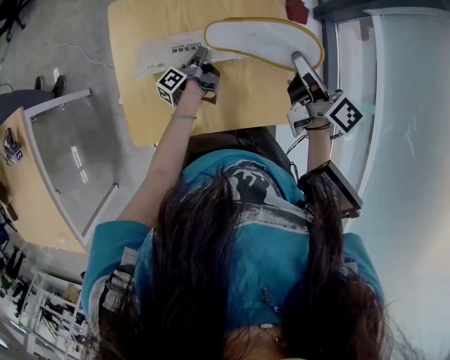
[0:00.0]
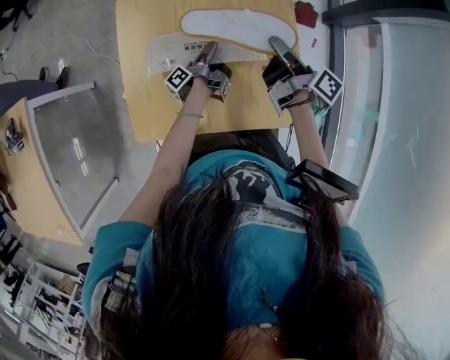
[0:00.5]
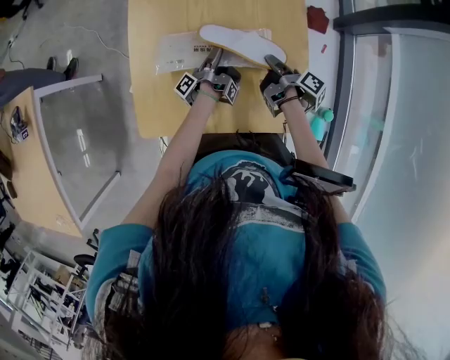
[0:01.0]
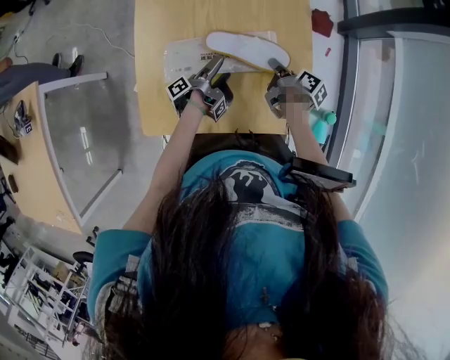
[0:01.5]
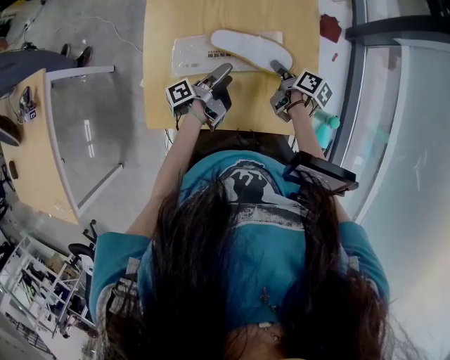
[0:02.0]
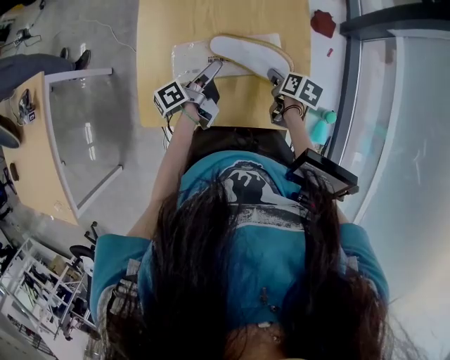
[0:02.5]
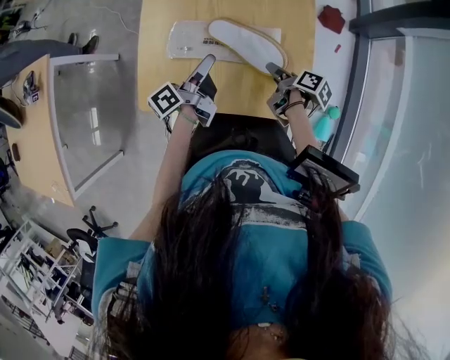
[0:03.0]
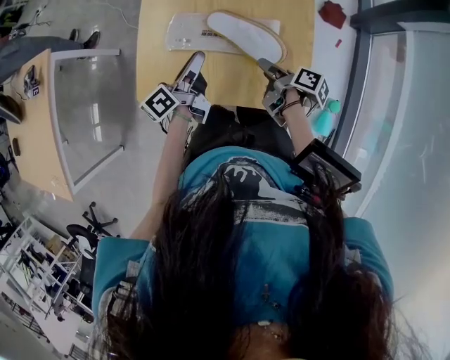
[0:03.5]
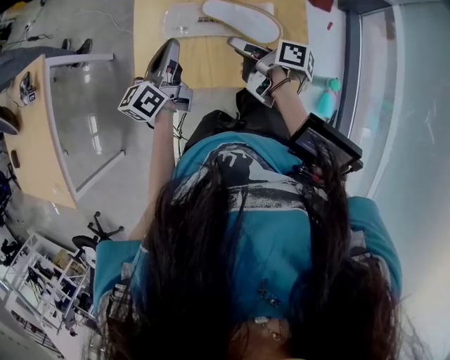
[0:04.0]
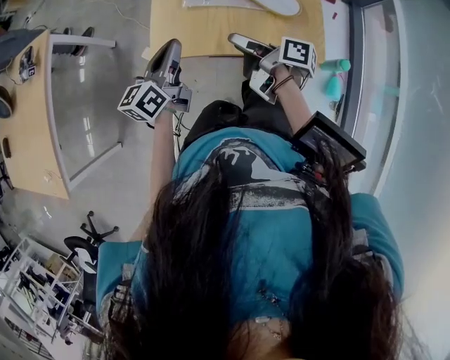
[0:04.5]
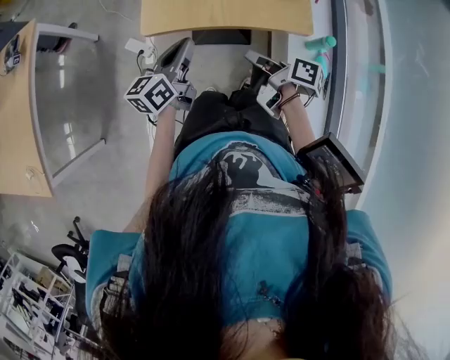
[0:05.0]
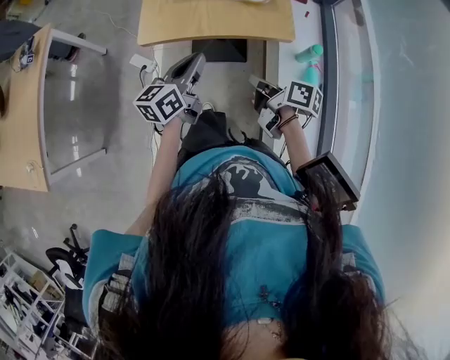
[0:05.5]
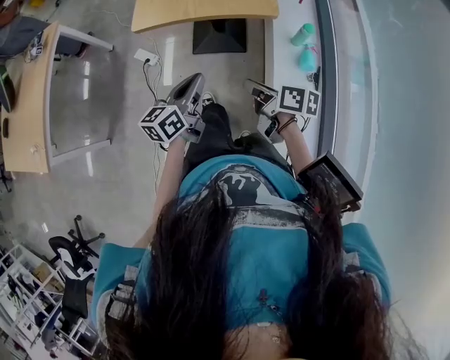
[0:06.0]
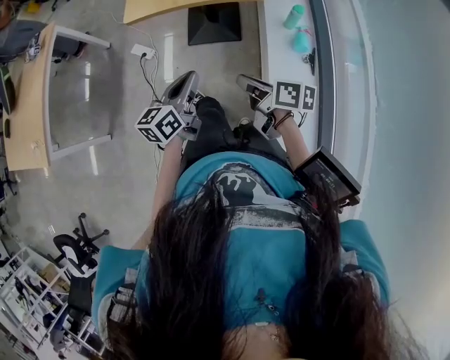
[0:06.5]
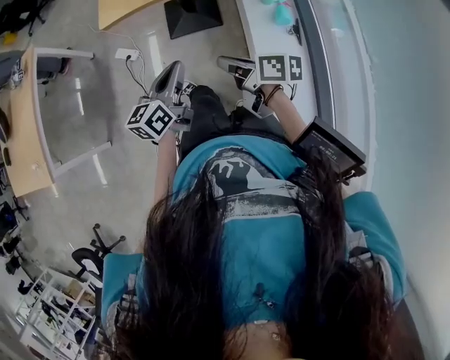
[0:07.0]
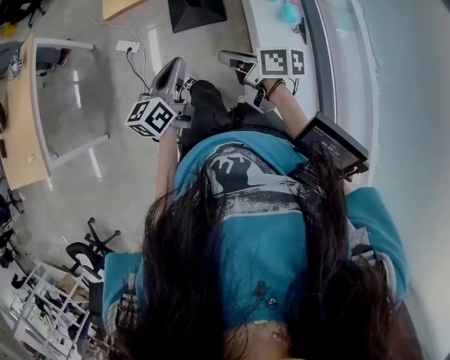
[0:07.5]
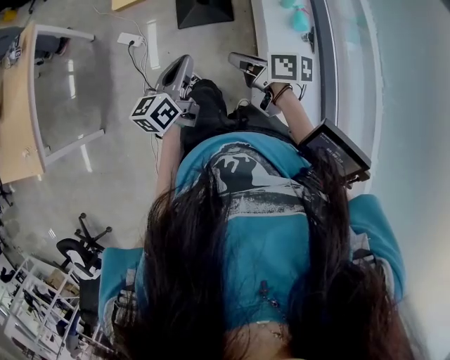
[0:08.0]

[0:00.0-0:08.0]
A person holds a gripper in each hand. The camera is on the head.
0:00.0 to 0:02.0: The left gripper is displaced backward and upward by roughly 10 cm, and opens up, while the right gripper moves downward, some 20 cm, turns by roughly 30 degrees, and opens its fingers.
0:02.0 to 0:04.0: Both grippers move upward, to the left and backward, roughly 20 cm. The left gripper twists some 60 degrees clockwise, seen from behind, and closes up. Meanwhile the right gripper rotates approximately 30 degrees.
0:04.0 to 0:06.0: Both grippers are carried backward, roughly 50 cm. The right gripper changes its angle by approximately 30 degrees, and closes.
0:06.0 to 0:08.0: The left gripper ends up roughly 5 cm from where it was. Meanwhile the right gripper shifts by some 5 cm.

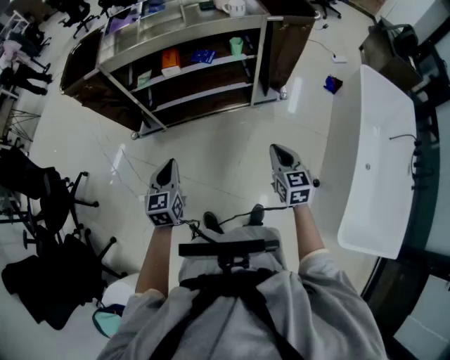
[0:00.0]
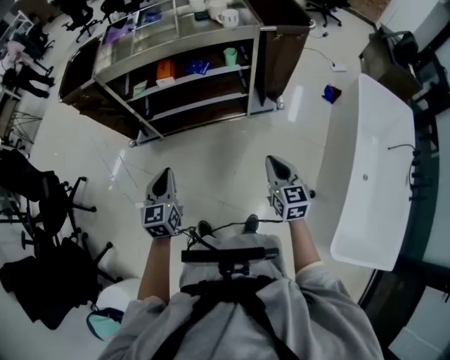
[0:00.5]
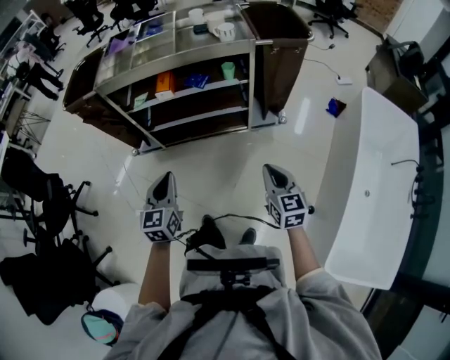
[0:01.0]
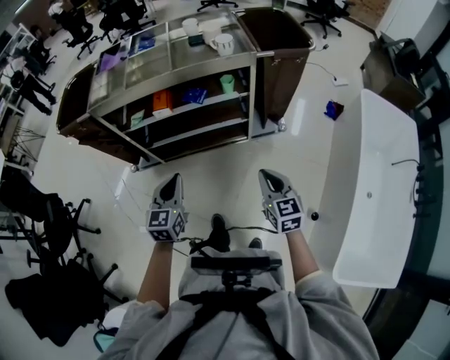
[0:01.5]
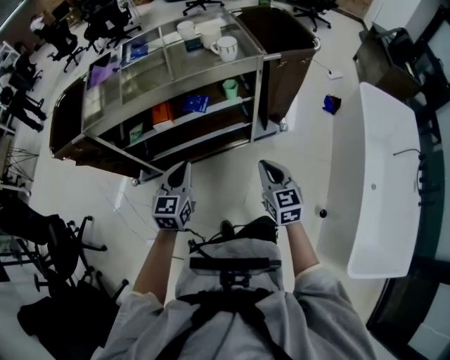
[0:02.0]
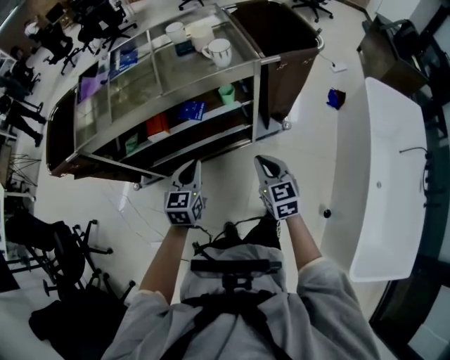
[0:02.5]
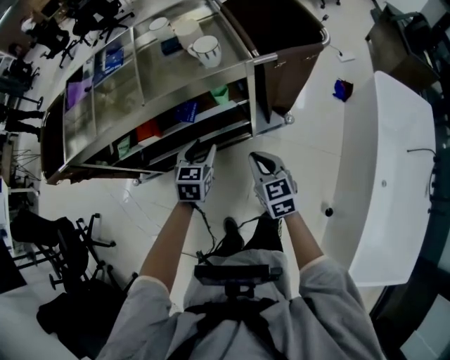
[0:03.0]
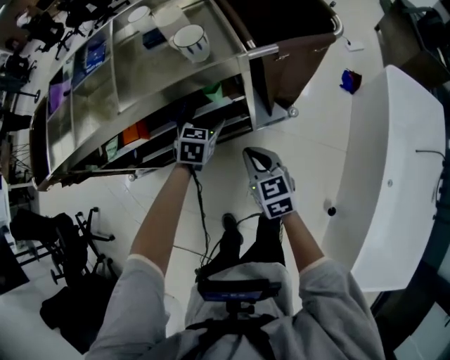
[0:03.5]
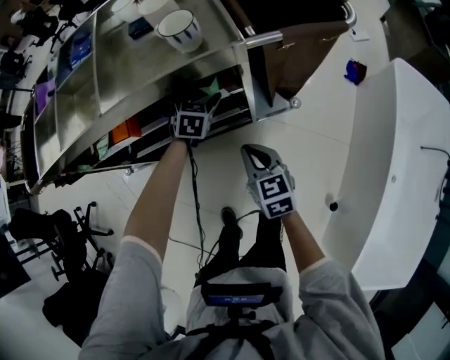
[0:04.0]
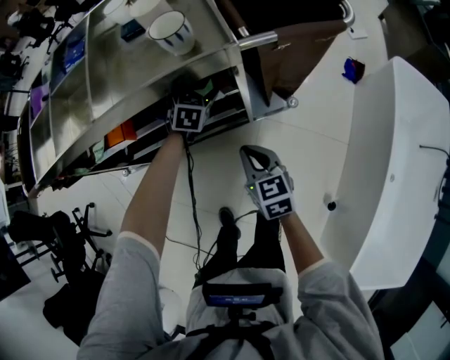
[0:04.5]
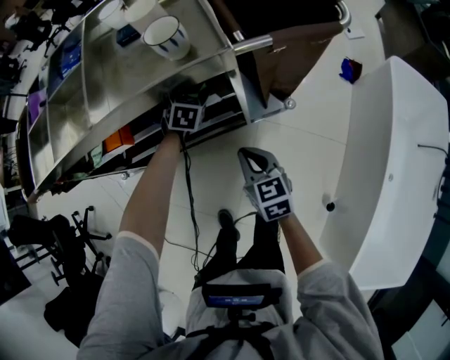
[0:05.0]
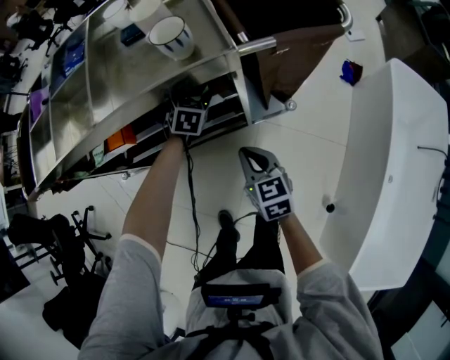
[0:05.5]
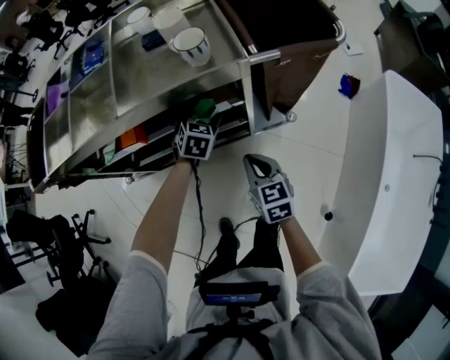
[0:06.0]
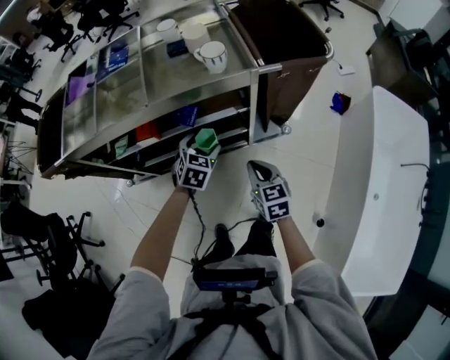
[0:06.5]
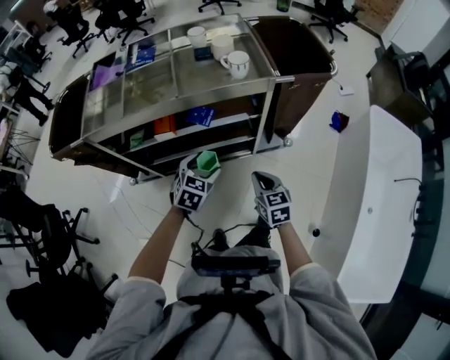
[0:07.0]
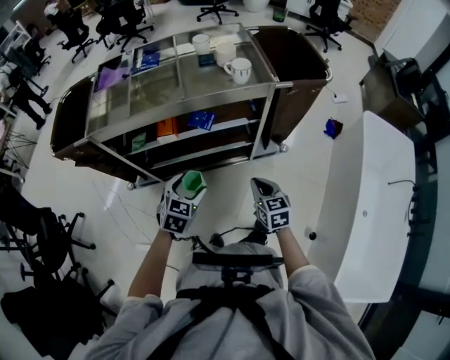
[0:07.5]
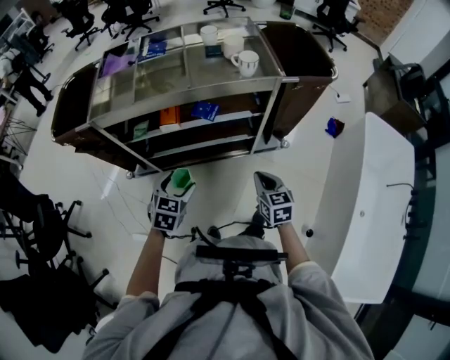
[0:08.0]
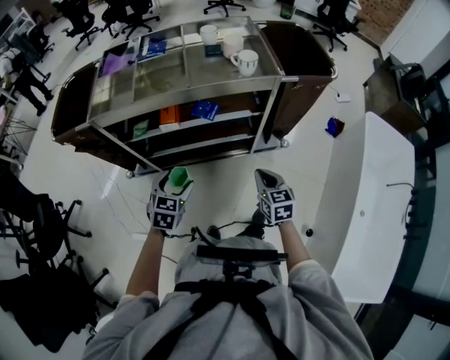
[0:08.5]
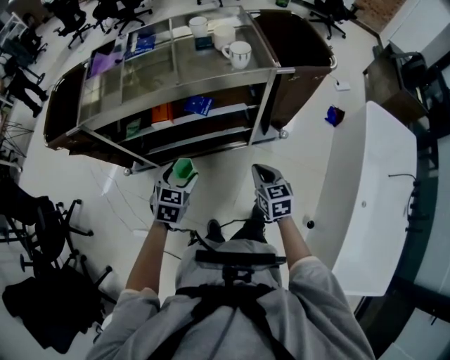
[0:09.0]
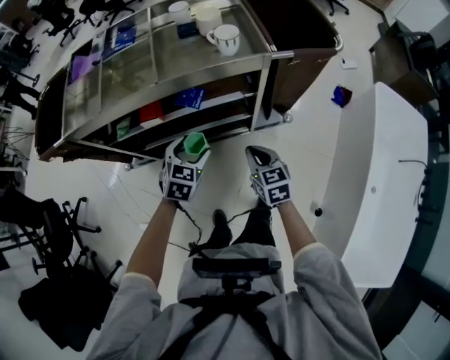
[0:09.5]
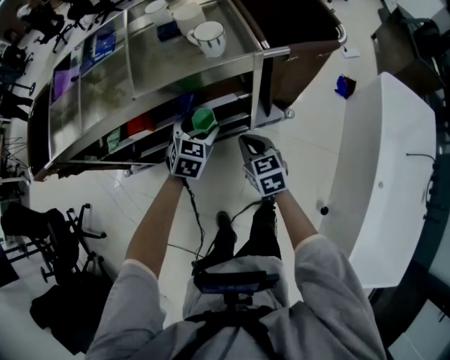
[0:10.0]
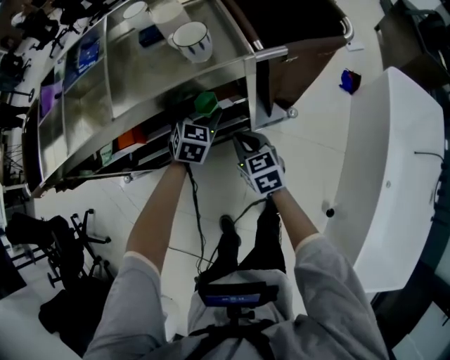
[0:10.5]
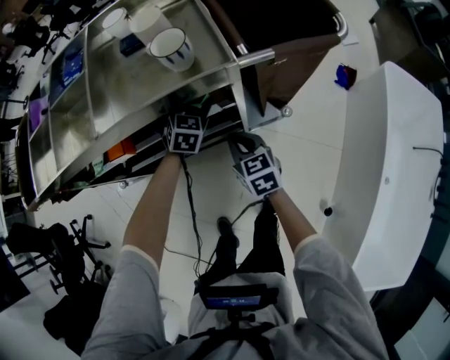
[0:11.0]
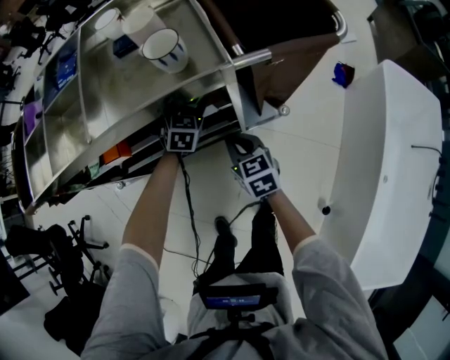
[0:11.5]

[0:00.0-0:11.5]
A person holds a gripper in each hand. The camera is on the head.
0:00.0 to 0:02.0: Both grippers travel together forward, approximately 20 cm.
0:02.0 to 0:04.0: The left gripper is displaced forward, downward and to the right by roughly 40 cm, swivels roughly 30 degrees, and opens up, while the right gripper moves forward and downward, approximately 25 cm.
0:04.0 to 0:06.0: The left gripper moves approximately 5 cm.
0:06.0 to 0:07.5: The left gripper is displaced backward and to the left by some 35 cm. Meanwhile the right gripper travels backward and to the left by approximately 15 cm.
0:07.5 to 0:09.5: The right gripper goes approximately 5 cm forward, while the left gripper moves forward and to the right, about 10 cm.
0:09.5 to 0:11.5: The right gripper is displaced forward and downward by some 15 cm. Meanwhile the left gripper goes approximately 30 cm forward and to the right.

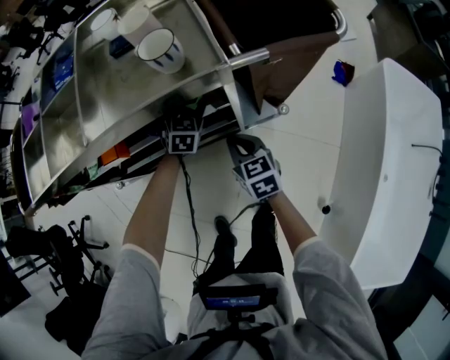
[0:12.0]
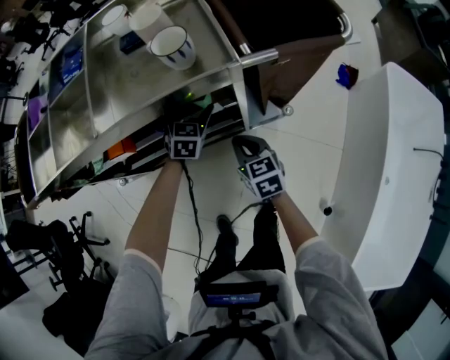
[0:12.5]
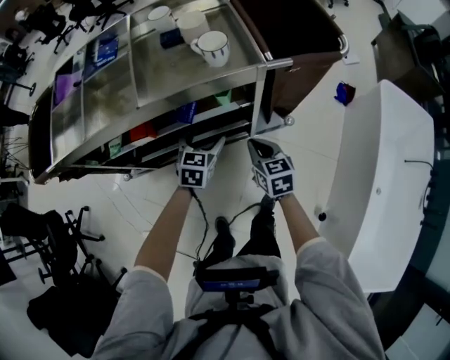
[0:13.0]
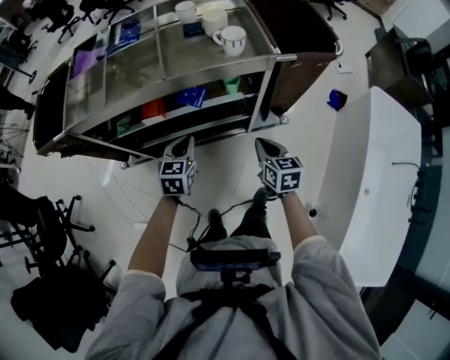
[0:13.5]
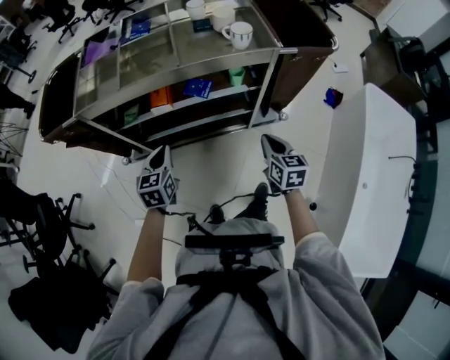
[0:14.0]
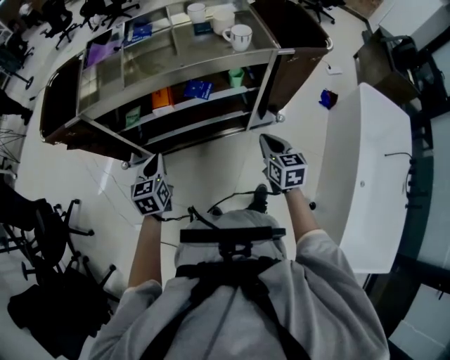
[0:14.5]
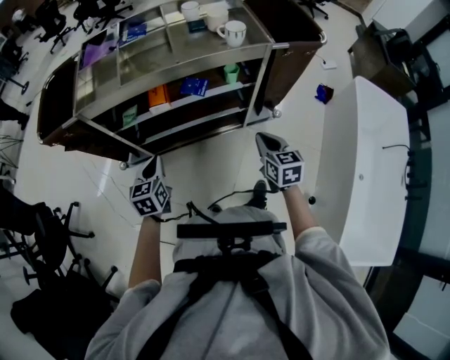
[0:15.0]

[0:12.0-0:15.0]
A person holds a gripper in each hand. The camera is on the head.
0:12.0 to 0:13.5: The right gripper goes roughly 15 cm backward and upward. The left gripper shifts about 30 cm backward, to the left and upward, rotates some 20 degrees, and closes its fingers.
0:13.5 to 0:15.0: The right gripper moves backward, some 10 cm. Meanwhile the left gripper is displaced to the left and backward by approximately 20 cm.

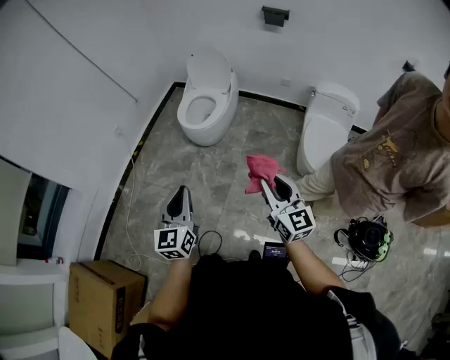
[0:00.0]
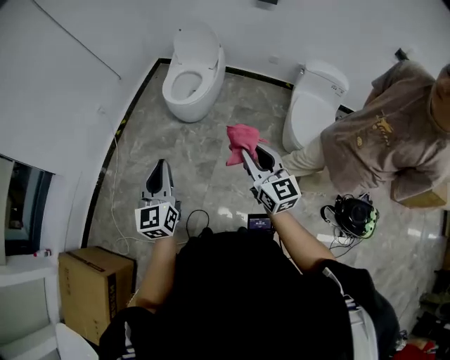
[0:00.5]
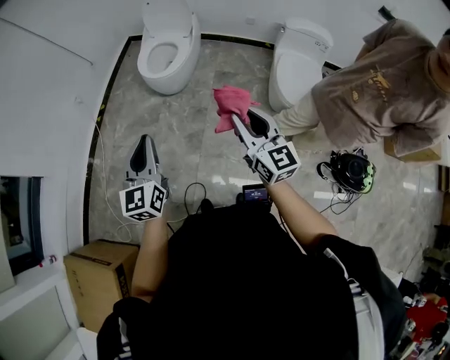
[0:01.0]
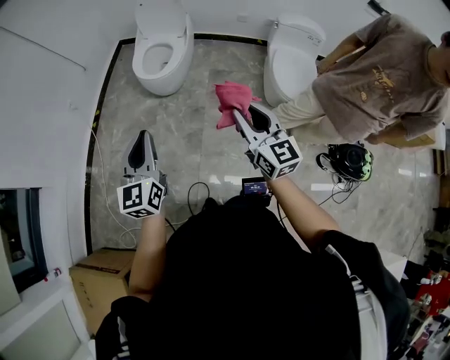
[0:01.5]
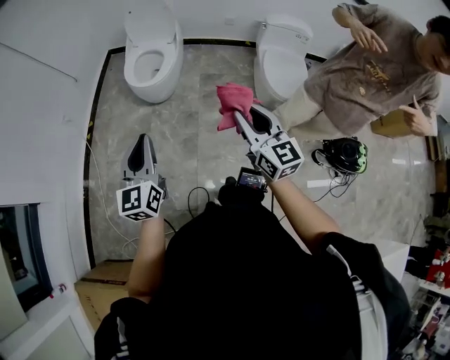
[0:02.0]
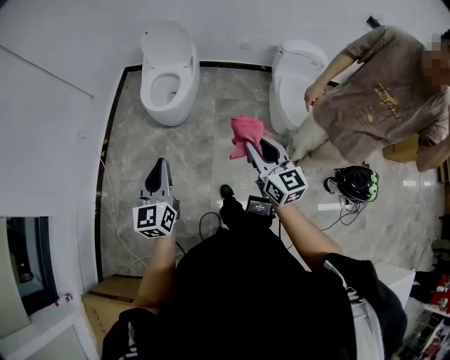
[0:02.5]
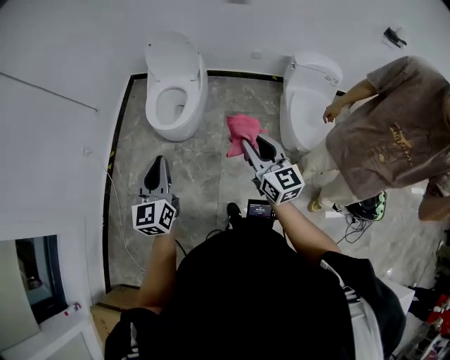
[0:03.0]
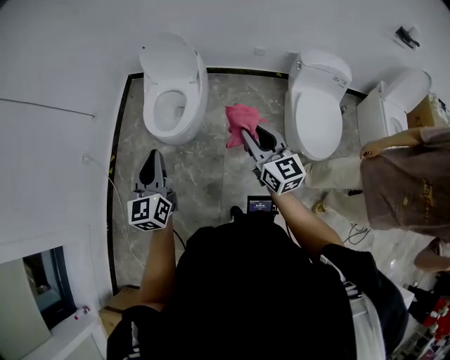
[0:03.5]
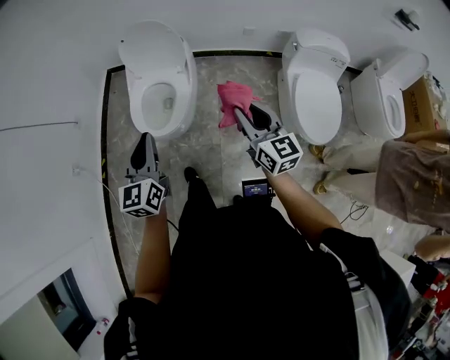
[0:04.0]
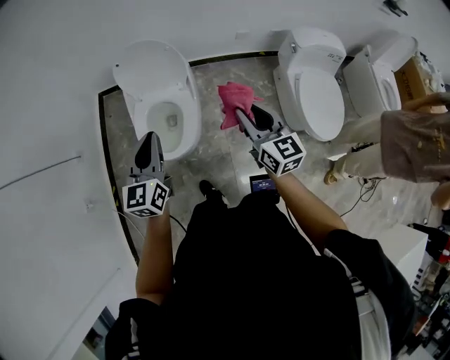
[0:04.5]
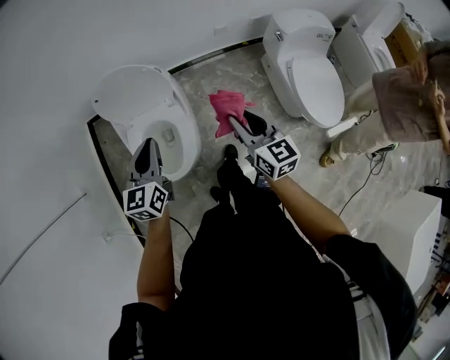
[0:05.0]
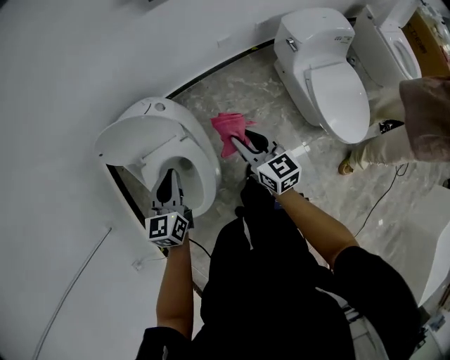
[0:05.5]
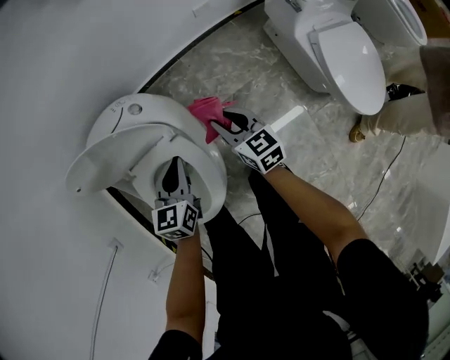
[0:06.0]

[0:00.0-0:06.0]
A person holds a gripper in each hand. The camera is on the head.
0:00.0 to 0:02.0: The left gripper moves to the left and forward, about 10 cm; the right gripper goes about 10 cm to the left.
0:02.0 to 0:04.0: Both grippers are carried forward, roughly 40 cm.
0:04.0 to 0:06.0: The grippers both shift forward and downward by approximately 50 cm. The left gripper swivels roughly 40 degrees, while the right gripper changes its angle by about 30 degrees.
